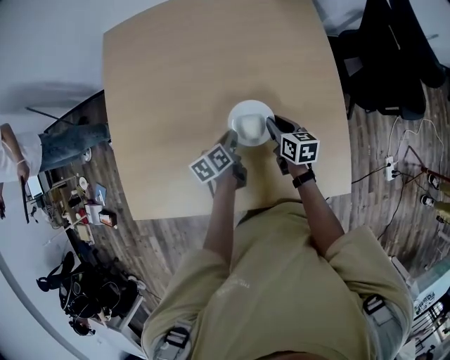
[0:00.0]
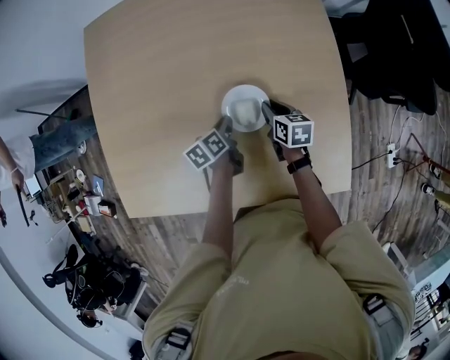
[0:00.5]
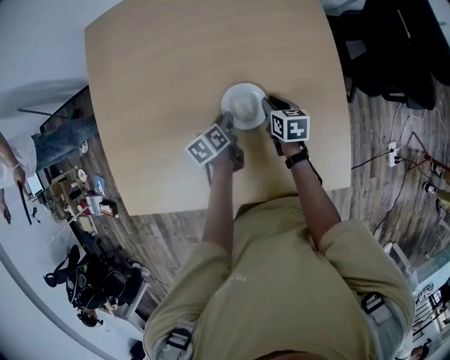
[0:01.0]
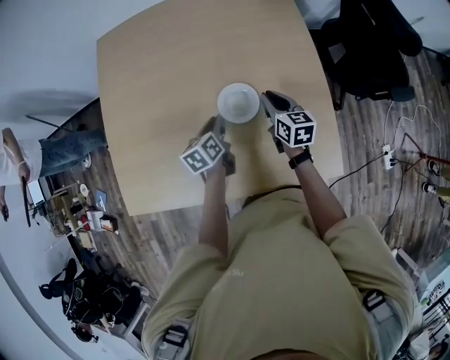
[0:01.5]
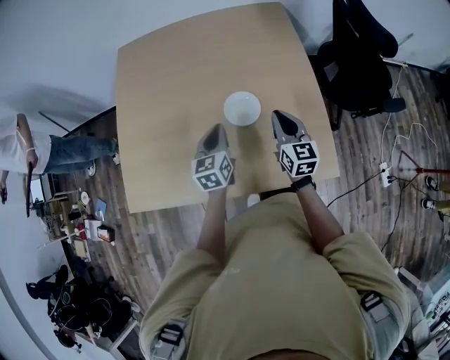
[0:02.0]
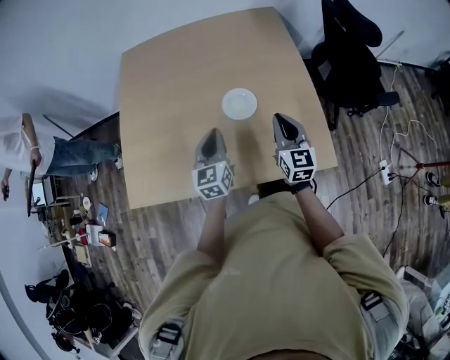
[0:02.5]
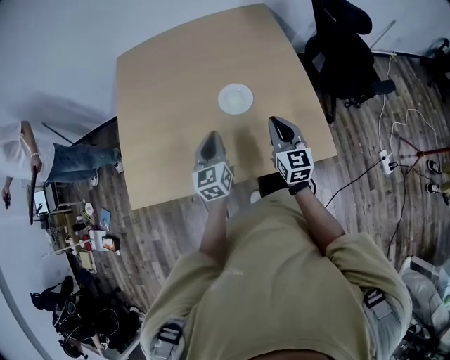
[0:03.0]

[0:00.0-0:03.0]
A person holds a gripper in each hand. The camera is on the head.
0:00.0 to 0:01.5: The right gripper moves upward, approximately 5 cm.
0:01.5 to 0:03.0: Both grippers move backward and upward, approximately 20 cm. The left gripper turns by roughly 40 degrees. The right gripper swivels approximately 30 degrees.

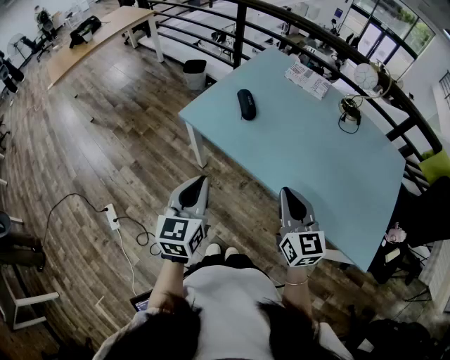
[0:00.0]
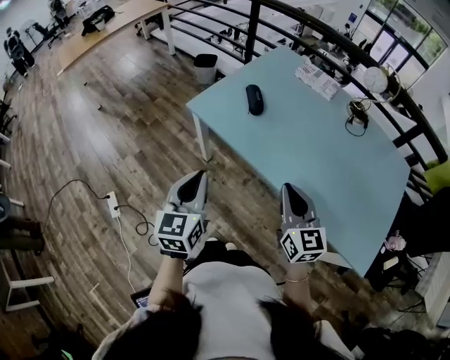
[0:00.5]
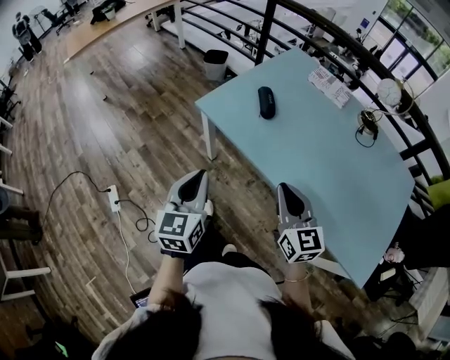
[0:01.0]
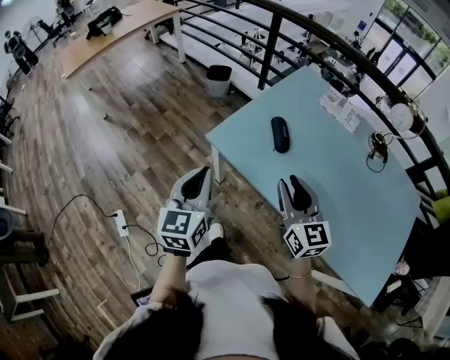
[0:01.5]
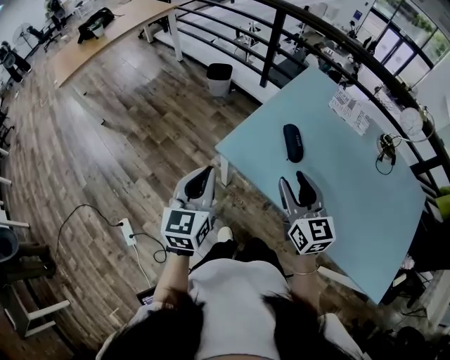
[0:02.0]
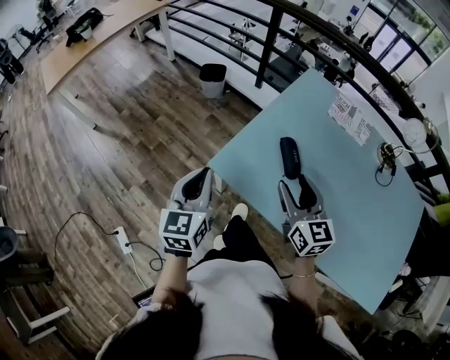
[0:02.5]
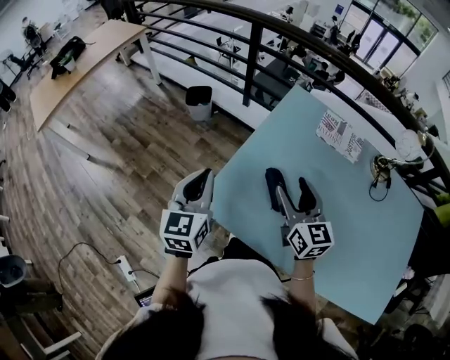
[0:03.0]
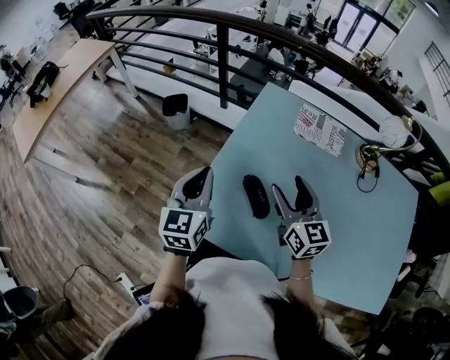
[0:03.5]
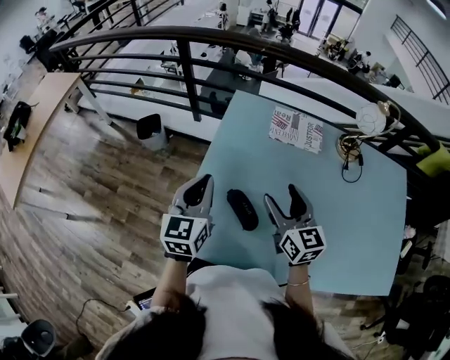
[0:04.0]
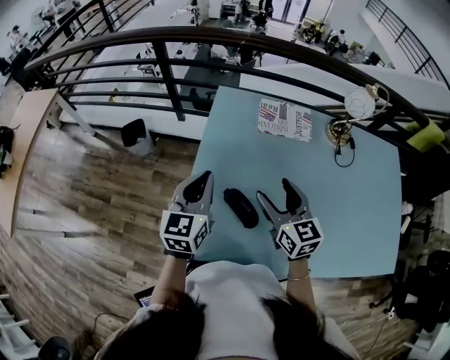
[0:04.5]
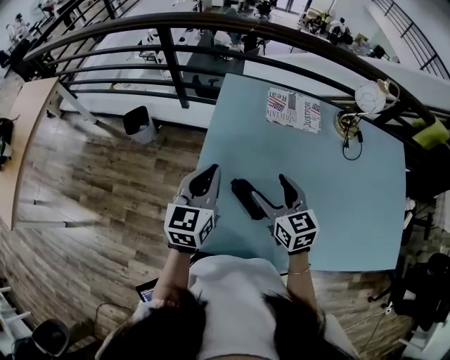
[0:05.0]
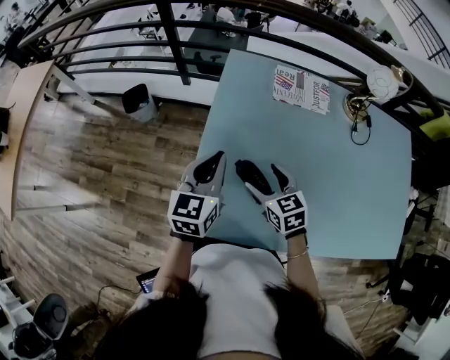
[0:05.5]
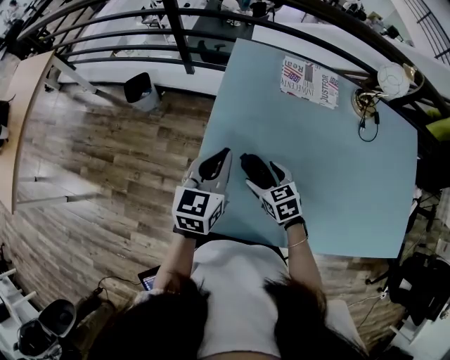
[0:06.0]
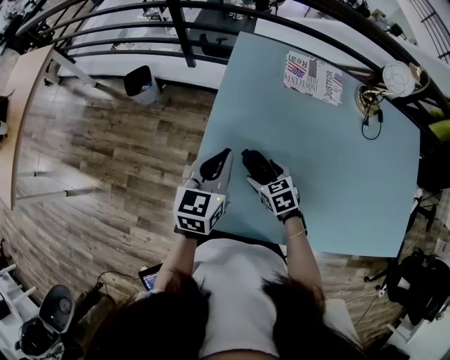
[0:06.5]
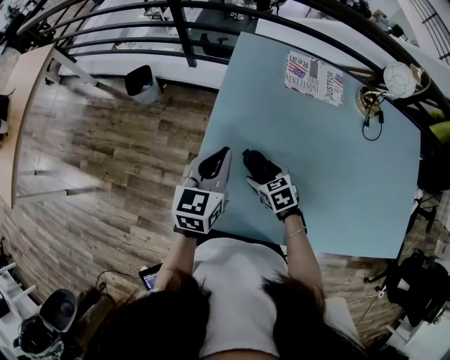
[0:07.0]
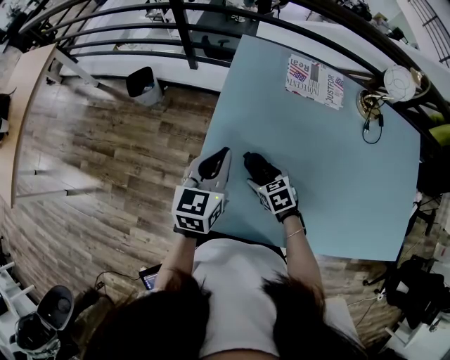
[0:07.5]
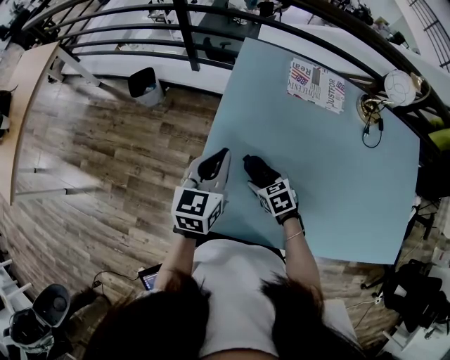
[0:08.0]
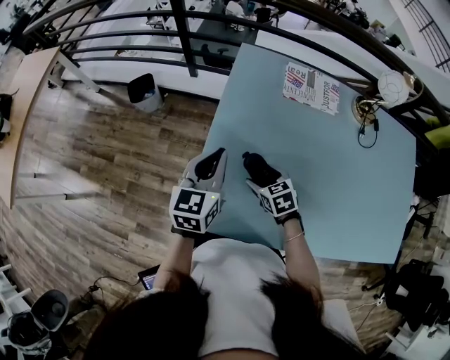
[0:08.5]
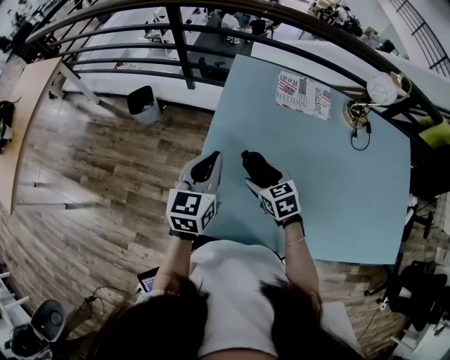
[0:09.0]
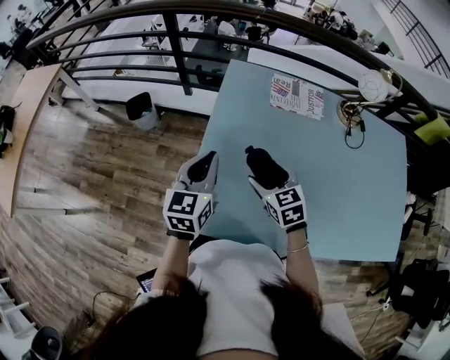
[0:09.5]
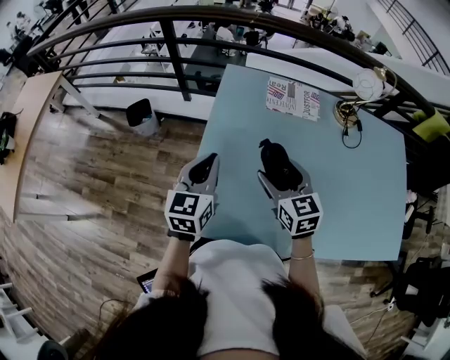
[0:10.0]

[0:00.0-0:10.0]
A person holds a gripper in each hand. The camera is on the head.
0:00.0 to 0:02.0: Both grippers move forward and to the left, roughly 30 cm. The right gripper opens up.
0:02.0 to 0:04.0: Both grippers travel together forward and to the right, approximately 30 cm. The left gripper changes its angle by some 20 degrees; the right gripper rotates approximately 20 degrees.
0:04.0 to 0:06.0: The left gripper heads downward, covering some 5 cm. Meanwhile the right gripper goes roughly 20 cm downward and to the left, and points its fingers some 40 degrees further downward.
0:06.0 to 0:08.0: The right gripper shifts some 5 cm downward.
0:08.0 to 0:10.0: The right gripper shifts about 25 cm upward, and points its fingers approximately 40 degrees further upward, while the left gripper heads upward, covering roughly 5 cm.

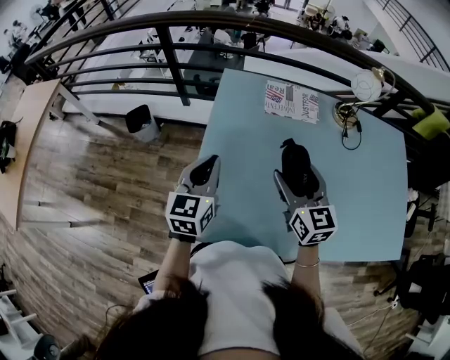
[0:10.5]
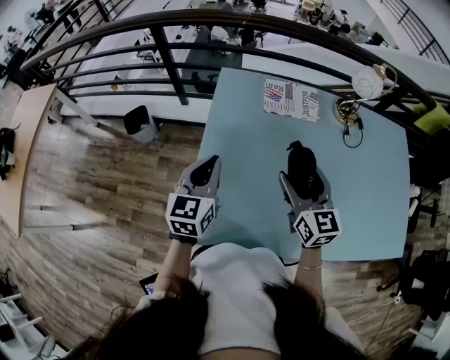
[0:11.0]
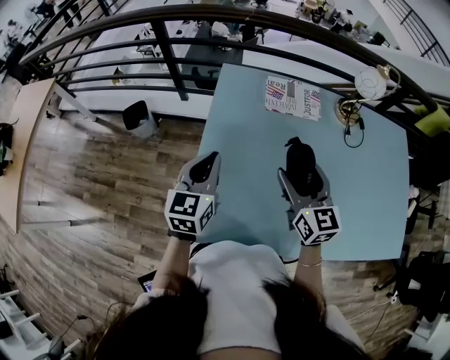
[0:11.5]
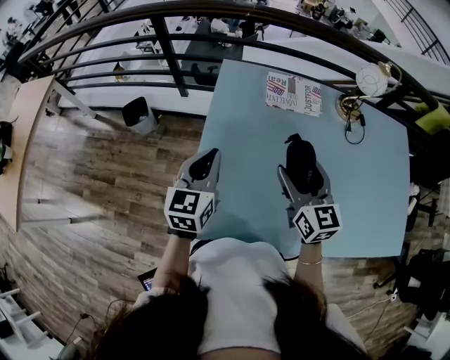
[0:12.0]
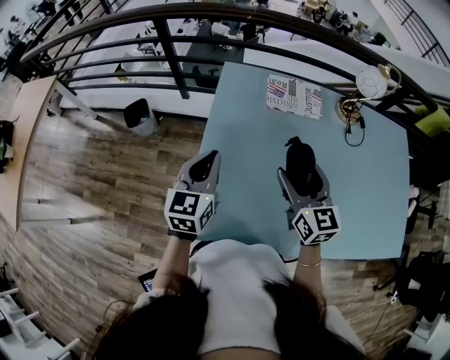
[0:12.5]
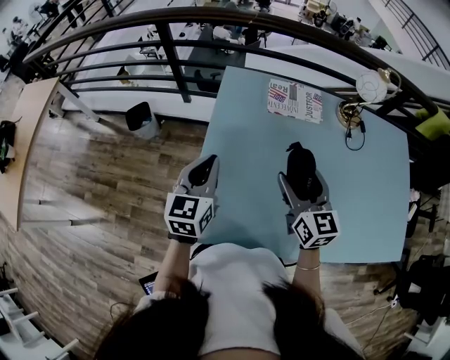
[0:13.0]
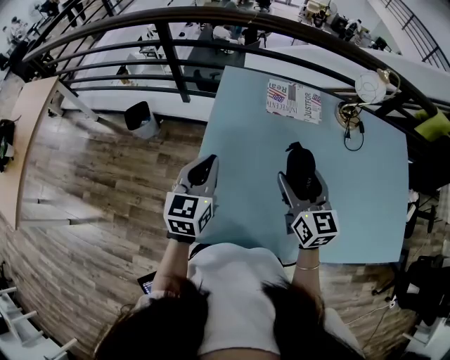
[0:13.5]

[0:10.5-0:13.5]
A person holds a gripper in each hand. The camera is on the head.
0:10.5 to 0:12.0: The grippers move only a little.
0:12.0 to 0:13.5: Neither gripper changes place.

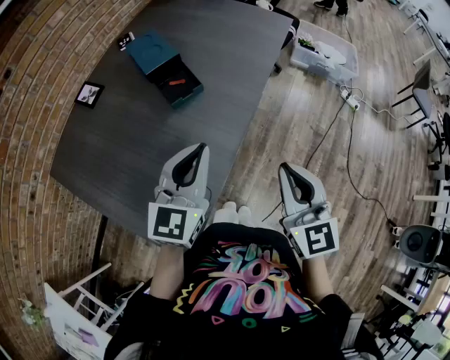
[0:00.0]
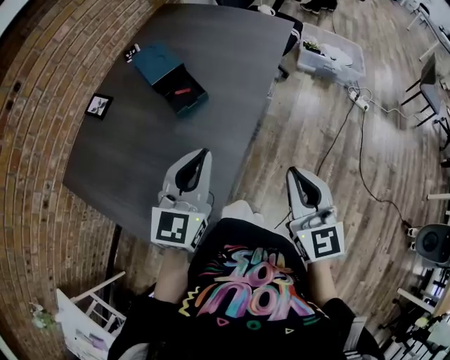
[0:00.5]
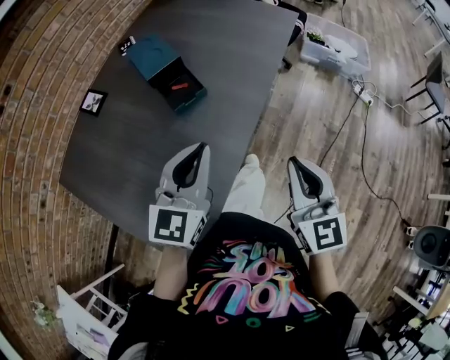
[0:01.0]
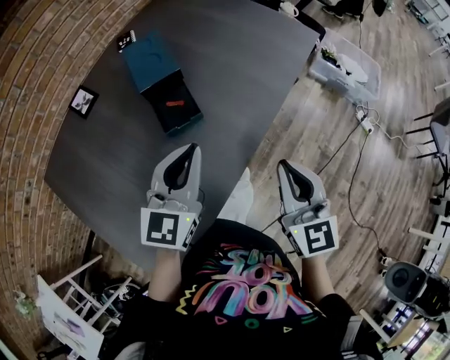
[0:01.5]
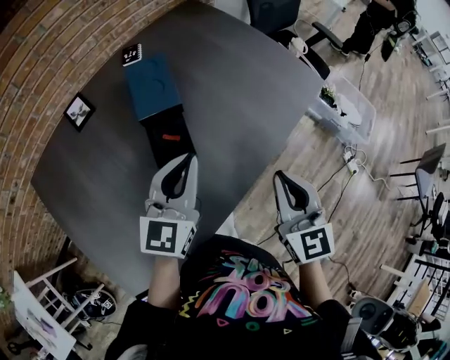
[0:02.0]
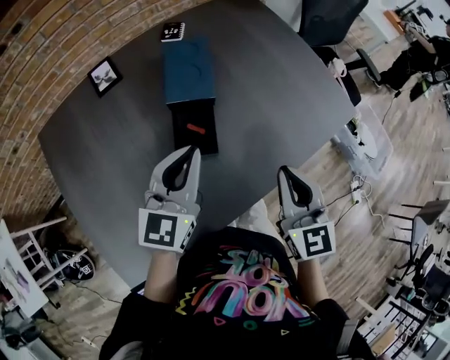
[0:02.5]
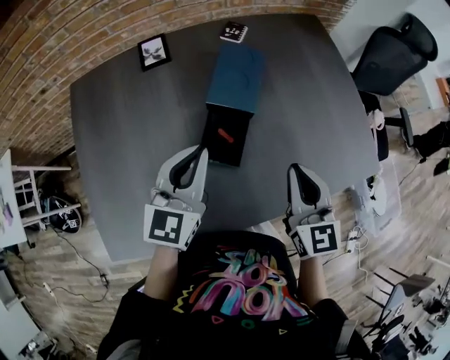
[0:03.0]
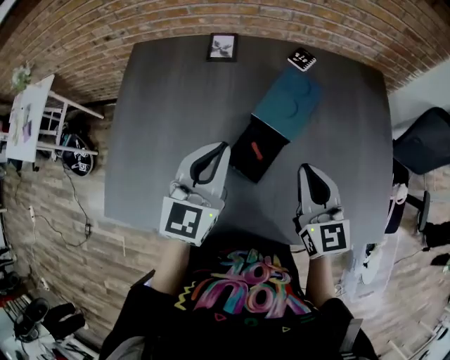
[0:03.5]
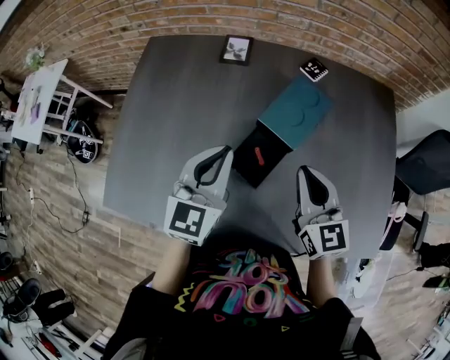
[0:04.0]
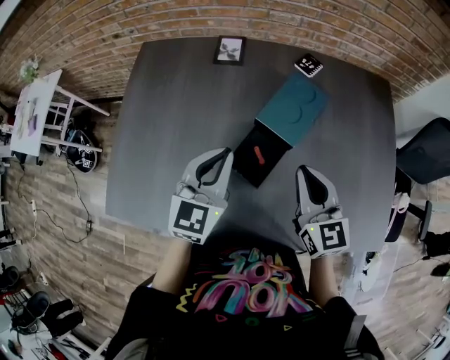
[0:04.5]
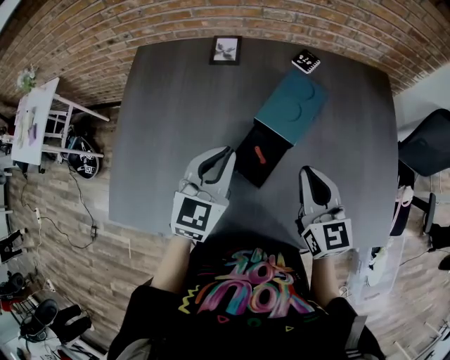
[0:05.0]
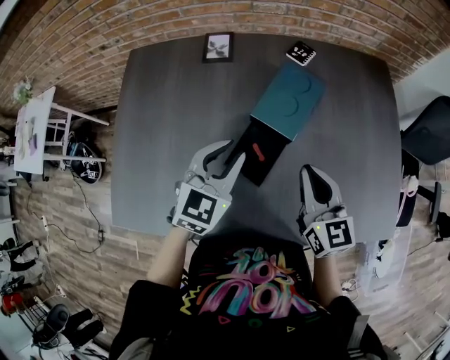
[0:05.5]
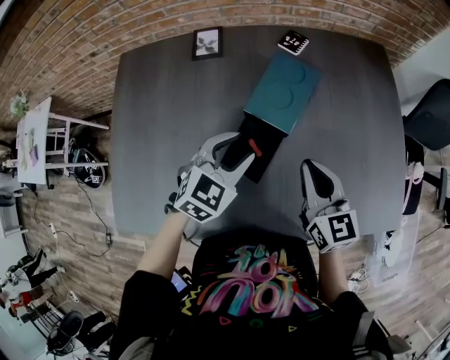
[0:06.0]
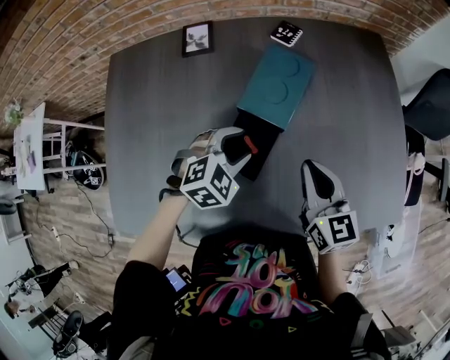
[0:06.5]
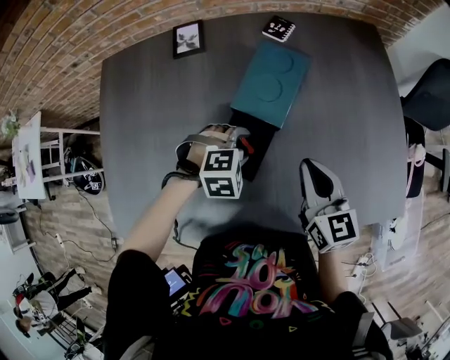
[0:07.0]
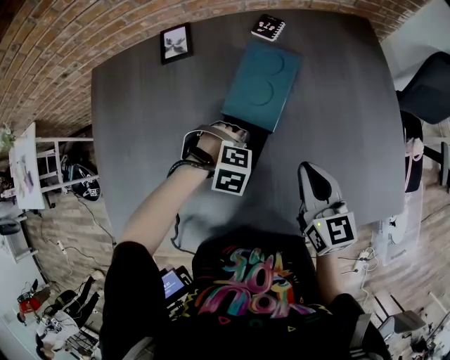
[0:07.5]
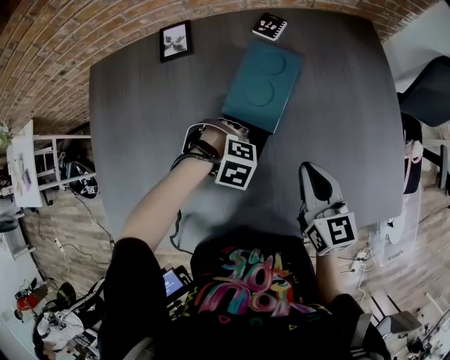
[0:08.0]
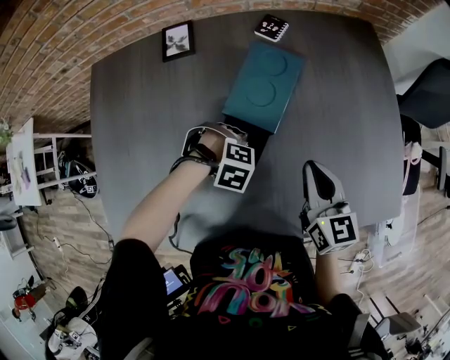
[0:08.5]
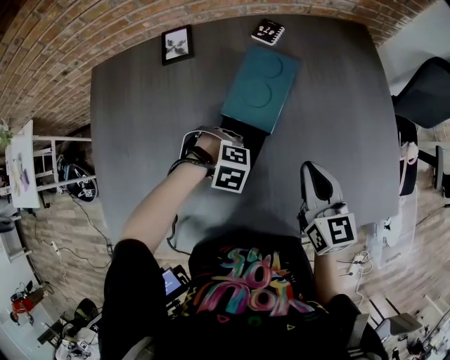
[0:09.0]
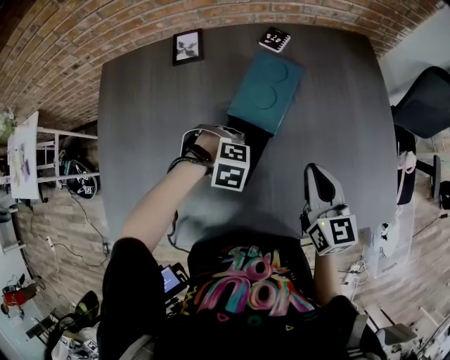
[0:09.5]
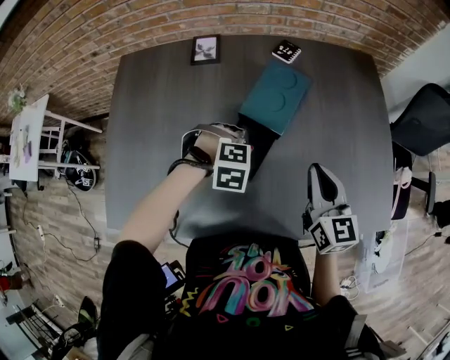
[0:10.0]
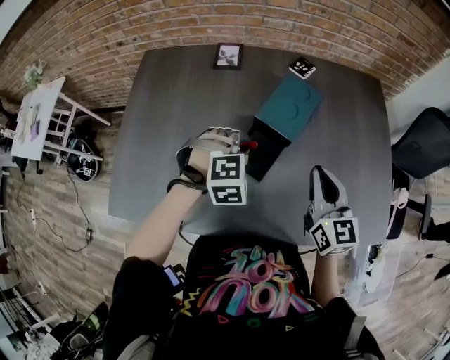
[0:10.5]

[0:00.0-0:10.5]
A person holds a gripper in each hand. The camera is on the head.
0:00.0 to 0:02.0: Both grippers travel together forward, roughly 25 cm.
0:02.0 to 0:04.0: The right gripper shifts by about 25 cm, and changes its angle by some 60 degrees, while the left gripper ends up some 15 cm from where it was, and rotates about 50 degrees.
0:04.0 to 0:06.5: The left gripper shifts approximately 15 cm downward and to the right, tips its fingers downward by approximately 40 degrees, and opens its fingers. The right gripper moves downward, roughly 5 cm.
0:06.5 to 0:08.5: The left gripper is displaced downward by approximately 10 cm, and tips its fingers downward by some 40 degrees.
0:08.5 to 0:10.5: The right gripper moves upward, approximately 10 cm, while the left gripper is displaced upward by about 15 cm, and points its fingers approximately 30 degrees further upward.
